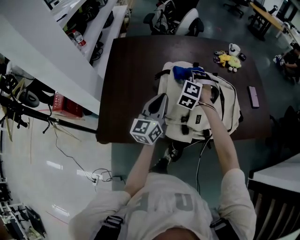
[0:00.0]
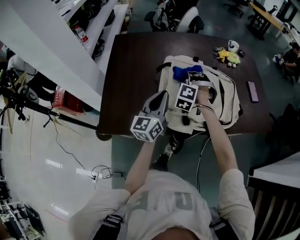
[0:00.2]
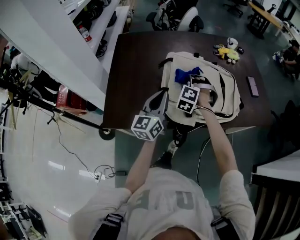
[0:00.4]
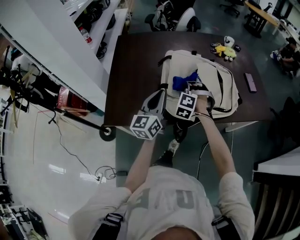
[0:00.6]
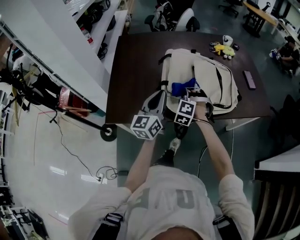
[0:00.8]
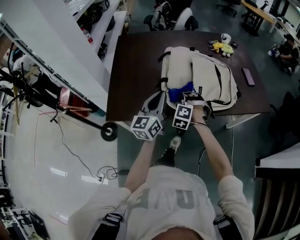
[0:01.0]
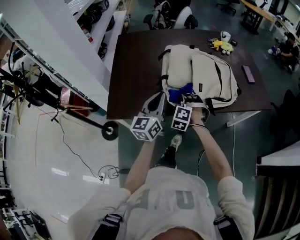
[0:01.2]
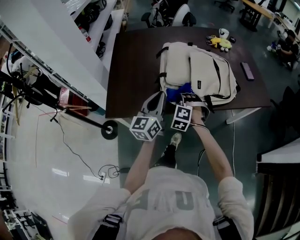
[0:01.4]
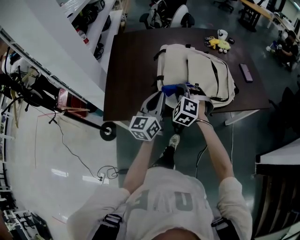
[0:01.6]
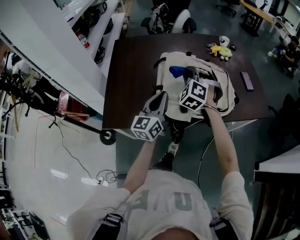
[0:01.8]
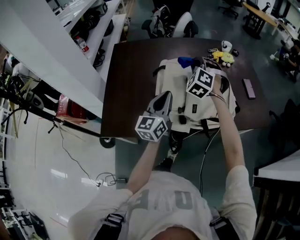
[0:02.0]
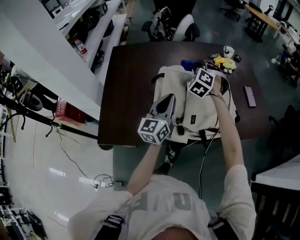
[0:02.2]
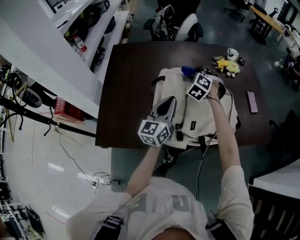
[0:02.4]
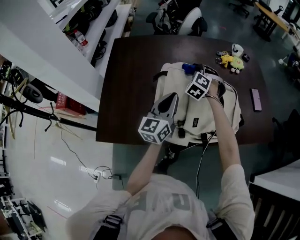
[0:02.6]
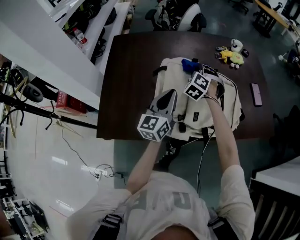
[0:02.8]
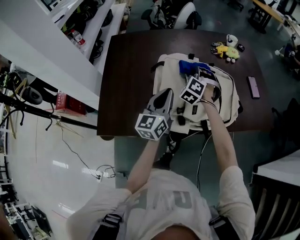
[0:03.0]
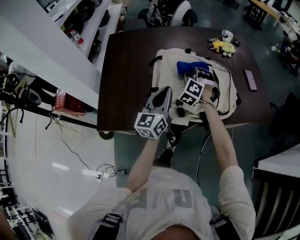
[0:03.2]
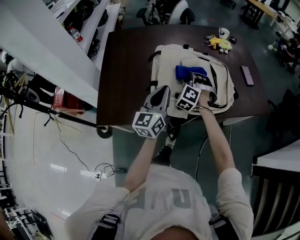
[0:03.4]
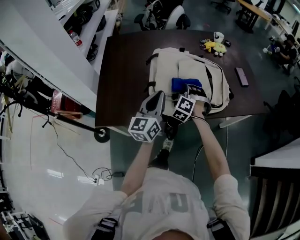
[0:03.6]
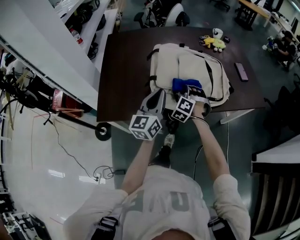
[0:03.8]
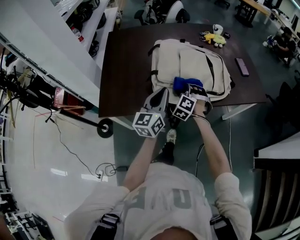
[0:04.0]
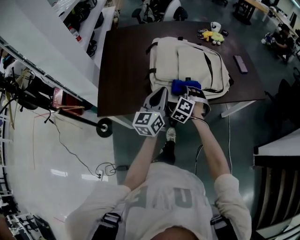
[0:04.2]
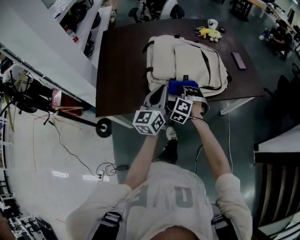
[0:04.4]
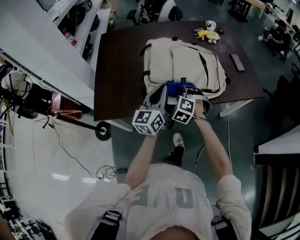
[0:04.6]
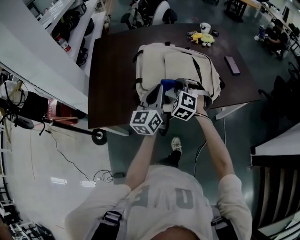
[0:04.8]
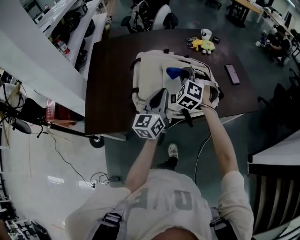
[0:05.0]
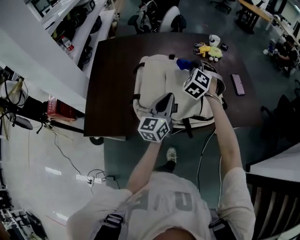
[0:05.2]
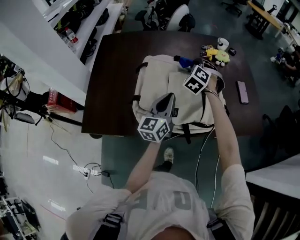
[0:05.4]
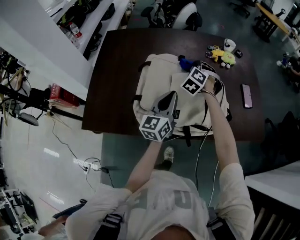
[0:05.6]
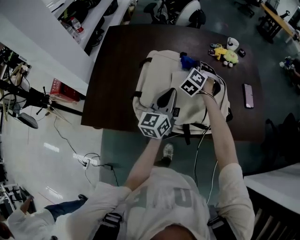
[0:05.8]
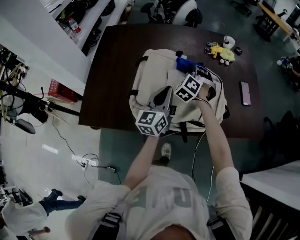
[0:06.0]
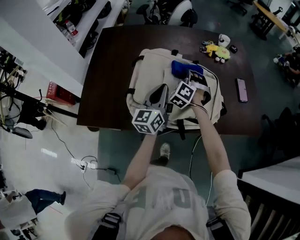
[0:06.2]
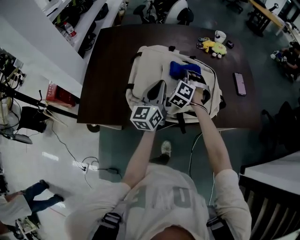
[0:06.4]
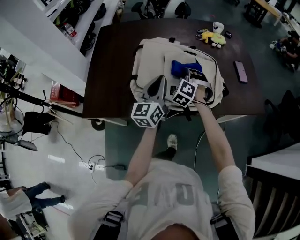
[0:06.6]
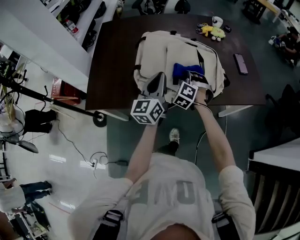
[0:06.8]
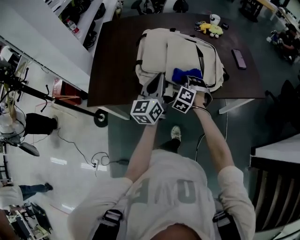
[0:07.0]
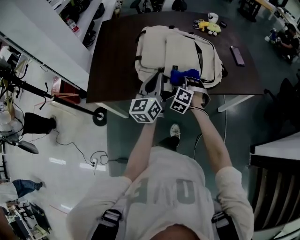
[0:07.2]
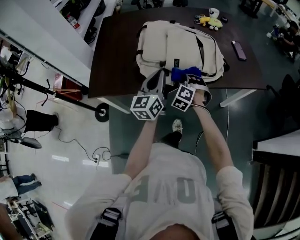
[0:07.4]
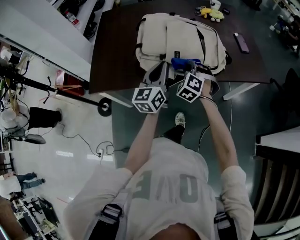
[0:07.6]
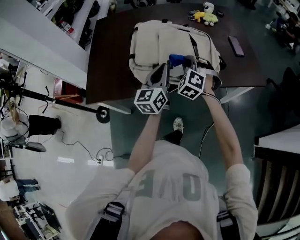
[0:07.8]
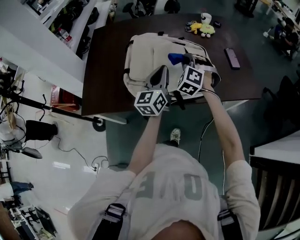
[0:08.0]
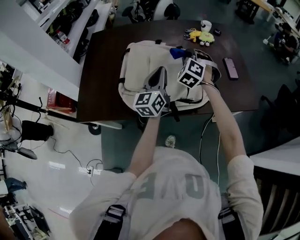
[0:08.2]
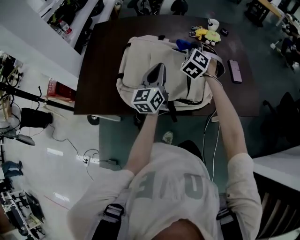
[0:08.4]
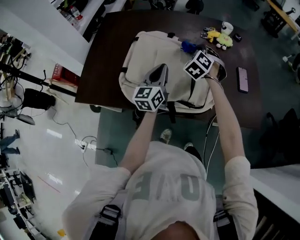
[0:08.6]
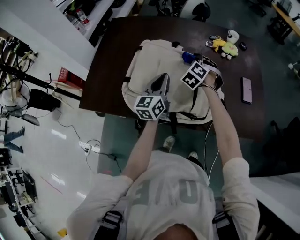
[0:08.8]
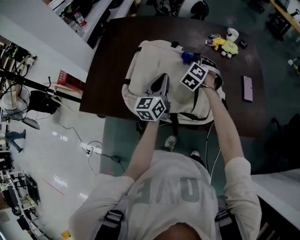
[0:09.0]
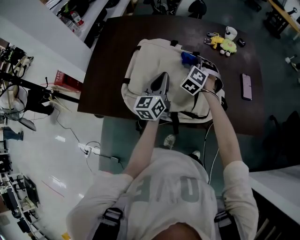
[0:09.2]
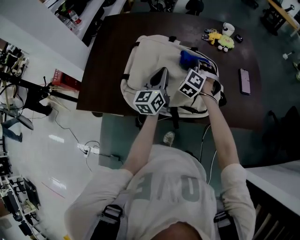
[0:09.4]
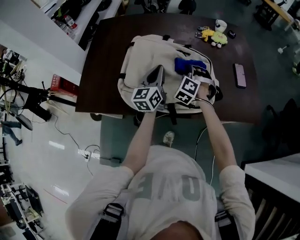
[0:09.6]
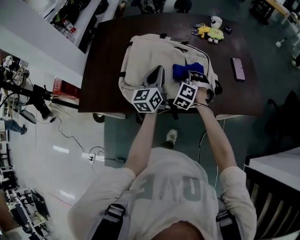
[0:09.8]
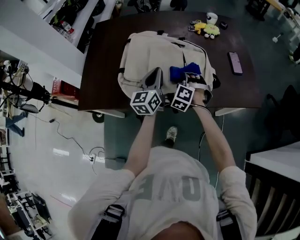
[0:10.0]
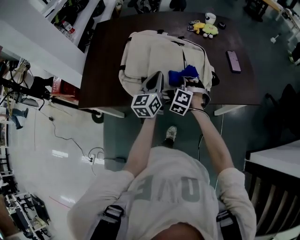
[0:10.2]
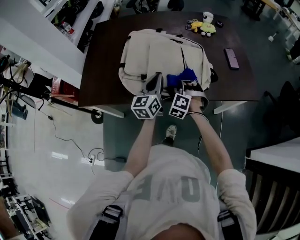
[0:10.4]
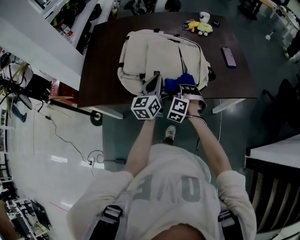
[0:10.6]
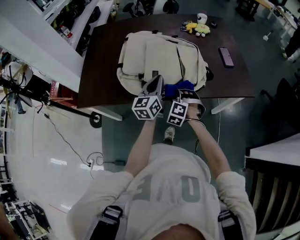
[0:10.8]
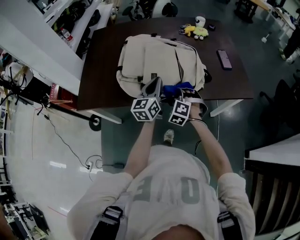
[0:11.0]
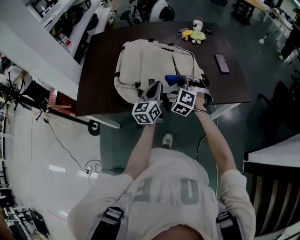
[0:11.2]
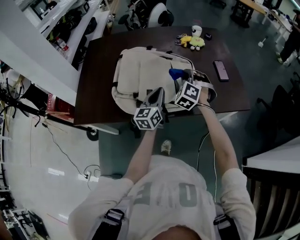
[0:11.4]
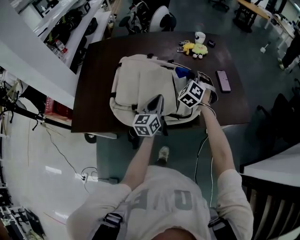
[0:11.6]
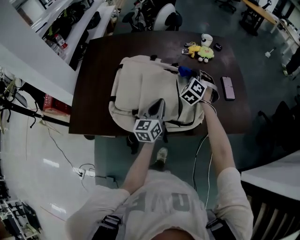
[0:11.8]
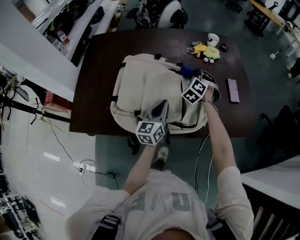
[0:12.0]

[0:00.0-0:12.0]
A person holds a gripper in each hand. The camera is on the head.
0:00.0 to 0:01.6: The left gripper is displaced backward by approximately 15 cm. The right gripper is displaced backward by about 25 cm.
0:01.6 to 0:03.0: The left gripper goes roughly 15 cm forward. Meanwhile the right gripper shifts approximately 25 cm forward.
0:03.0 to 0:04.4: The left gripper goes approximately 15 cm backward. The right gripper travels backward by about 25 cm.
0:04.4 to 0:06.0: The left gripper travels forward by about 15 cm. Meanwhile the right gripper travels forward by about 25 cm.
0:06.0 to 0:07.6: The left gripper moves backward, approximately 15 cm. Meanwhile the right gripper travels backward by approximately 25 cm.
0:07.6 to 0:09.0: Both grippers travel together forward, about 25 cm.
0:09.0 to 0:10.4: The right gripper is displaced backward by approximately 25 cm. The left gripper travels backward by roughly 10 cm.
0:10.4 to 0:12.0: The right gripper moves forward, approximately 25 cm. Meanwhile the left gripper goes some 10 cm forward.

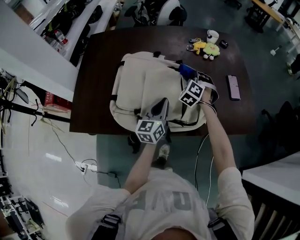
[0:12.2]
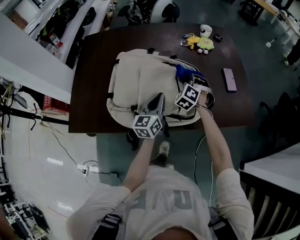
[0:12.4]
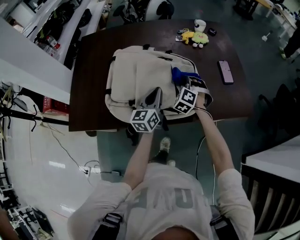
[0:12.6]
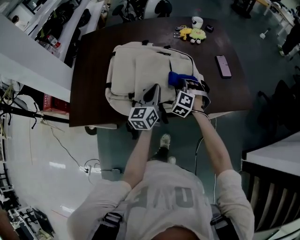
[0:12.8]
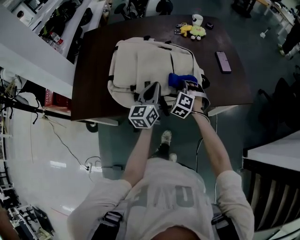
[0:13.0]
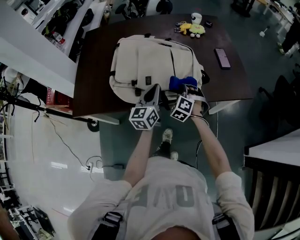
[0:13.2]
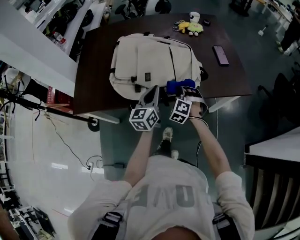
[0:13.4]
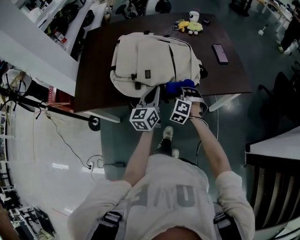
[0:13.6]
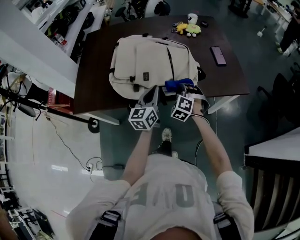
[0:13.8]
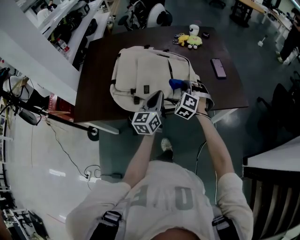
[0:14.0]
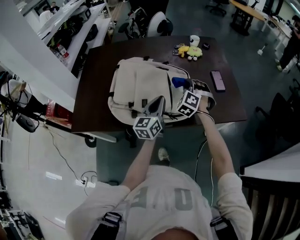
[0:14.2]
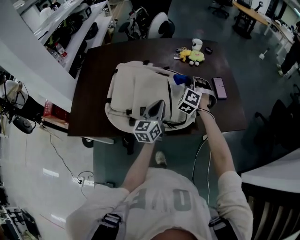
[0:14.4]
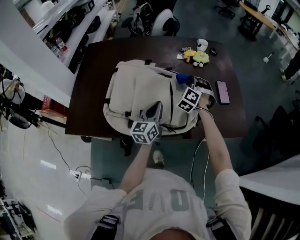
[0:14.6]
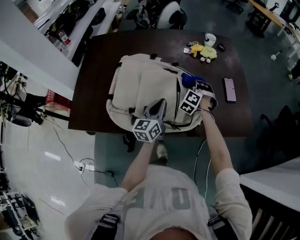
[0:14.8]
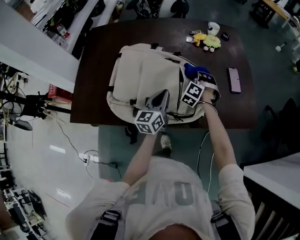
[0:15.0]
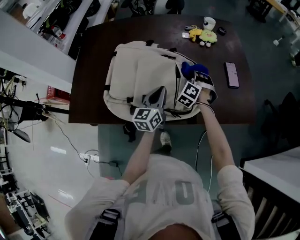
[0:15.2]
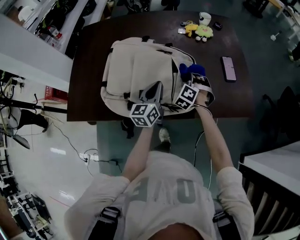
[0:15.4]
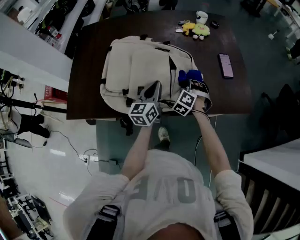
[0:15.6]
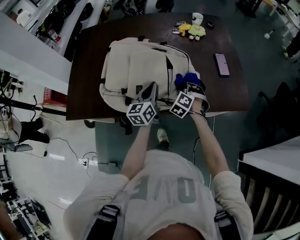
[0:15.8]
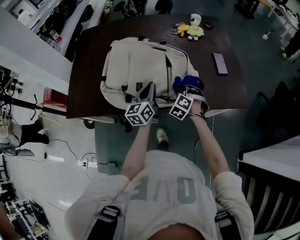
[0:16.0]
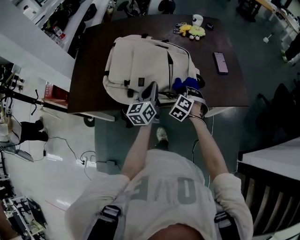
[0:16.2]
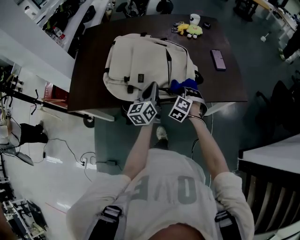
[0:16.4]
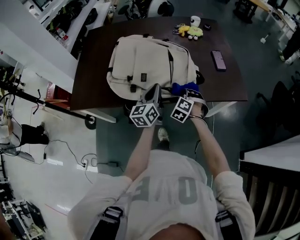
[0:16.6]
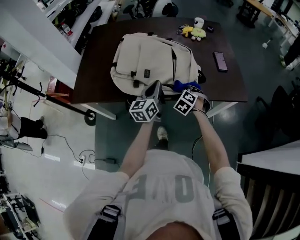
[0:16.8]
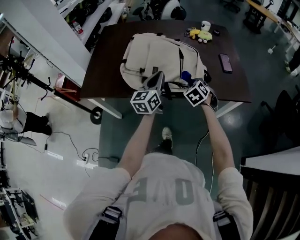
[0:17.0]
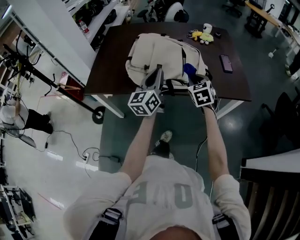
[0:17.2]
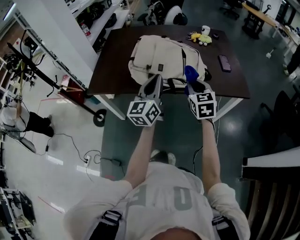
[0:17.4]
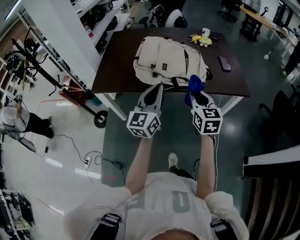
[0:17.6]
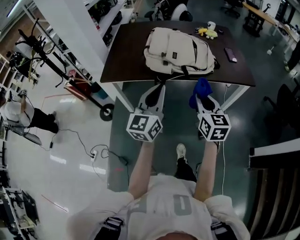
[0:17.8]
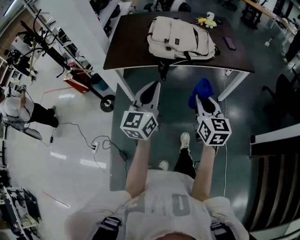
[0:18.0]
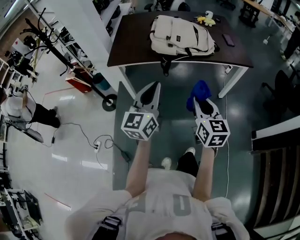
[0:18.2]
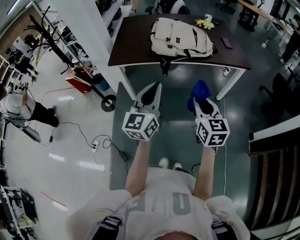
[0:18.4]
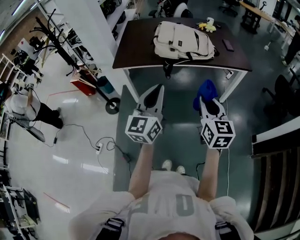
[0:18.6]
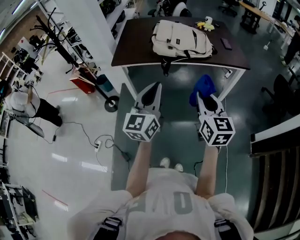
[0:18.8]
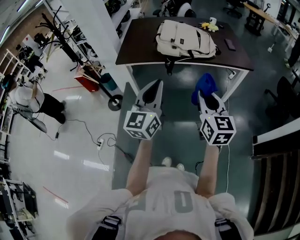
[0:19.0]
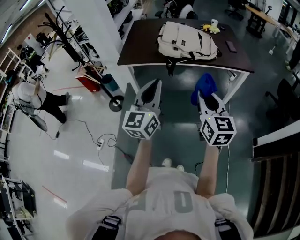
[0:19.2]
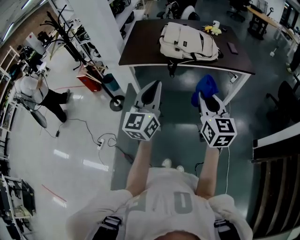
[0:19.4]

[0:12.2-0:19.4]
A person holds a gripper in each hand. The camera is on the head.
0:12.2 to 0:13.6: The right gripper goes approximately 30 cm backward; the left gripper goes some 15 cm backward.
0:13.6 to 0:15.0: The left gripper heads forward, covering about 15 cm, while the right gripper moves forward, approximately 25 cm.
0:15.0 to 0:16.6: The left gripper is displaced backward by about 10 cm. The right gripper shifts some 25 cm backward.
0:16.6 to 0:18.0: Both grippers move backward and upward, roughly 40 cm. The right gripper twists roughly 70 degrees clockwise, seen from behind.
0:18.0 to 0:19.4: The grippers both shift backward and upward by about 15 cm.

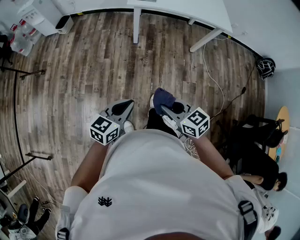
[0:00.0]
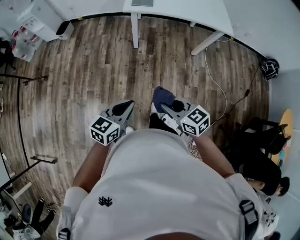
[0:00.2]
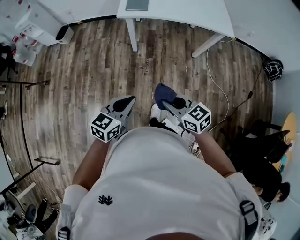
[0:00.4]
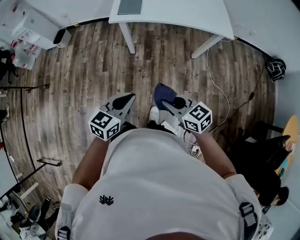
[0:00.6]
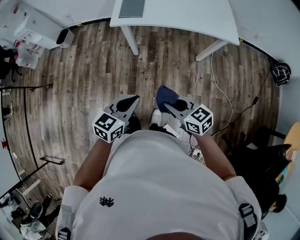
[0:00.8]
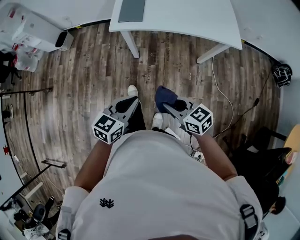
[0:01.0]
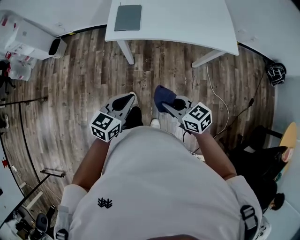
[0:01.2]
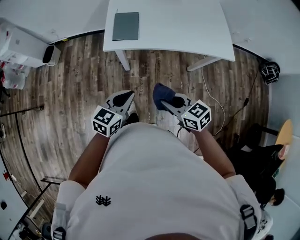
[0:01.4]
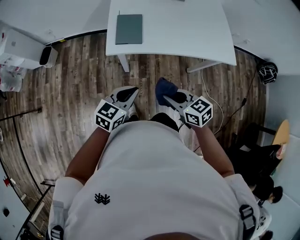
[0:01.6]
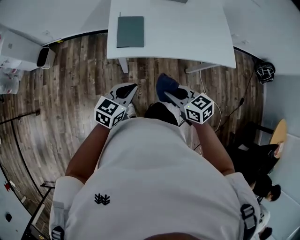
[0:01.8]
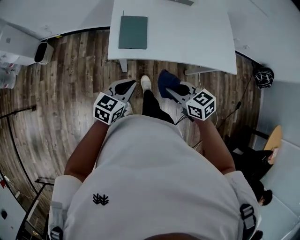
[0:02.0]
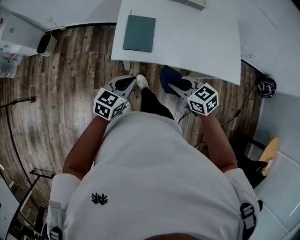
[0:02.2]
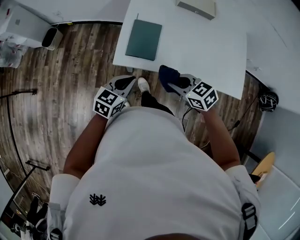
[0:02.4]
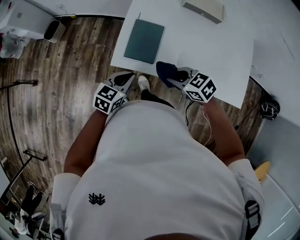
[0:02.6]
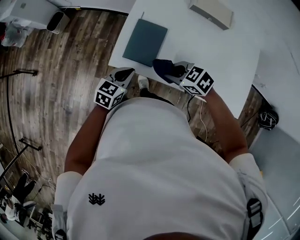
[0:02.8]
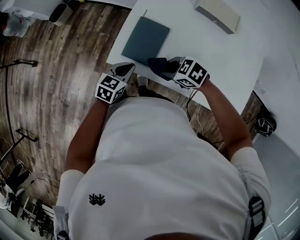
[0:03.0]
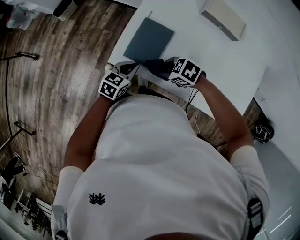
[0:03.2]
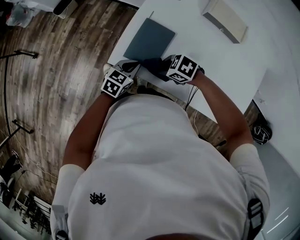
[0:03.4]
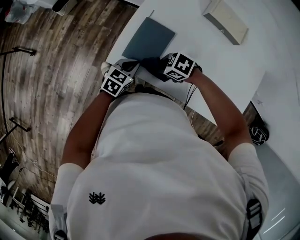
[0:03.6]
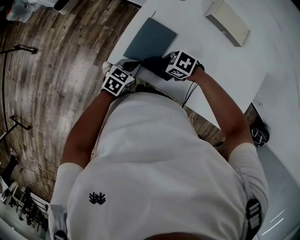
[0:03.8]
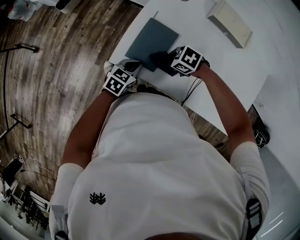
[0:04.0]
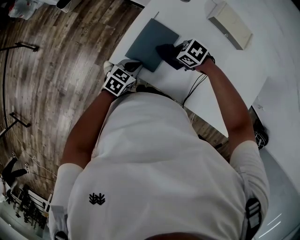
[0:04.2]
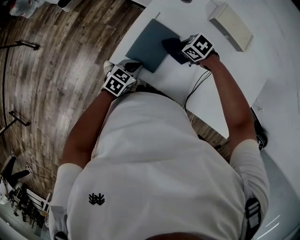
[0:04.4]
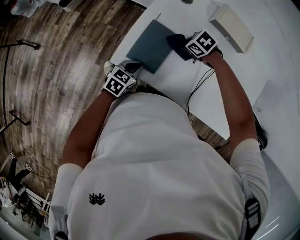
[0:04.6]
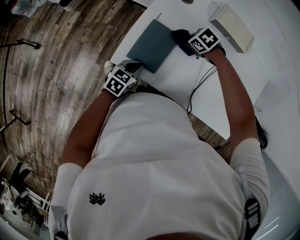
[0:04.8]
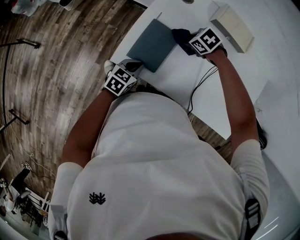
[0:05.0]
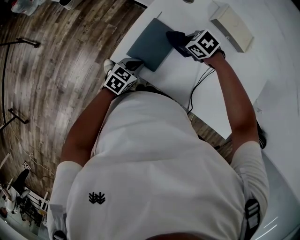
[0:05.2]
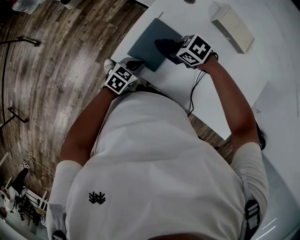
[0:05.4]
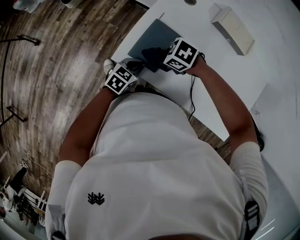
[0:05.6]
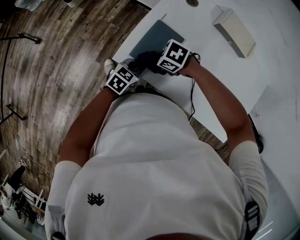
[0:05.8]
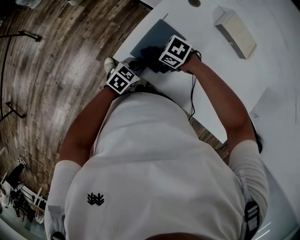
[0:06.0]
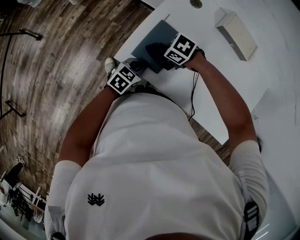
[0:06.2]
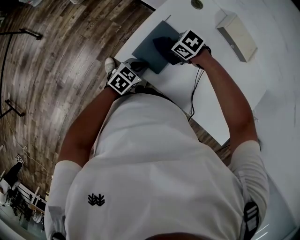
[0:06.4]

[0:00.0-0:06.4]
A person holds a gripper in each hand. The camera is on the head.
0:00.0 to 0:01.6: The two grippers travel together, forward, approximately 40 cm.
0:01.6 to 0:03.2: The left gripper ends up some 30 cm from where it was, and turns by roughly 30 degrees, while the right gripper changes place by approximately 35 cm, and swivels about 70 degrees.
0:03.2 to 0:04.8: The right gripper moves about 20 cm.
